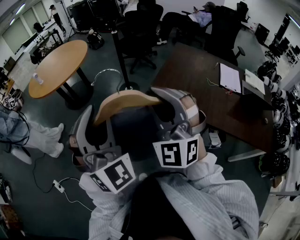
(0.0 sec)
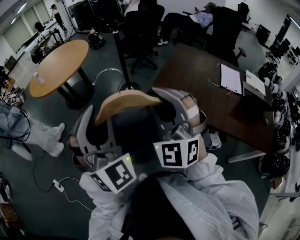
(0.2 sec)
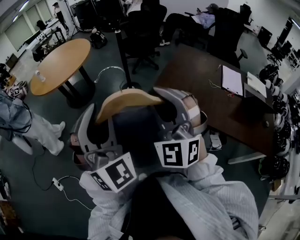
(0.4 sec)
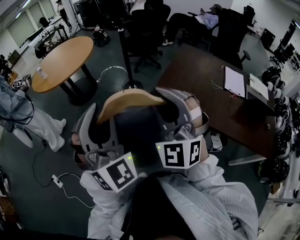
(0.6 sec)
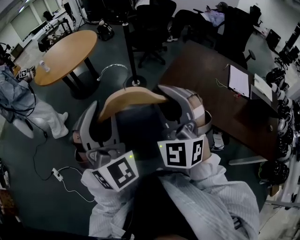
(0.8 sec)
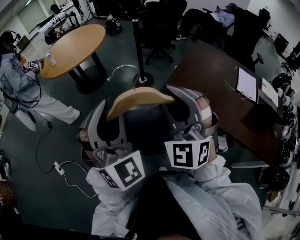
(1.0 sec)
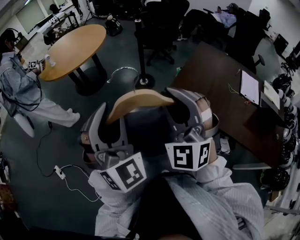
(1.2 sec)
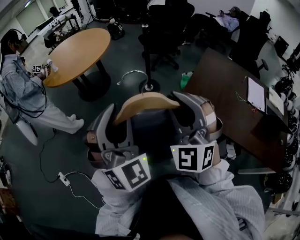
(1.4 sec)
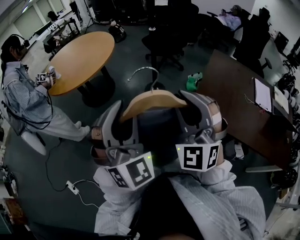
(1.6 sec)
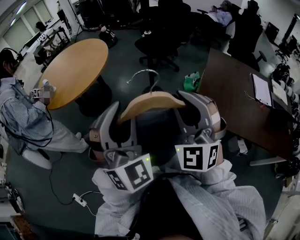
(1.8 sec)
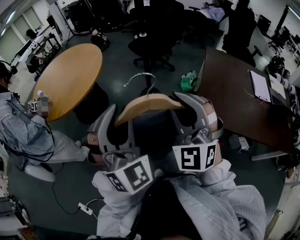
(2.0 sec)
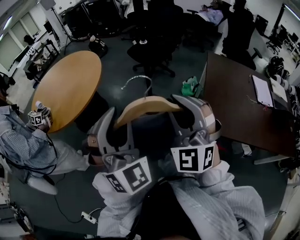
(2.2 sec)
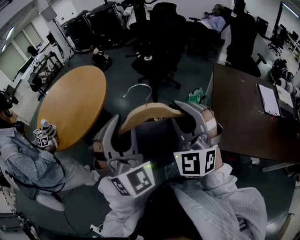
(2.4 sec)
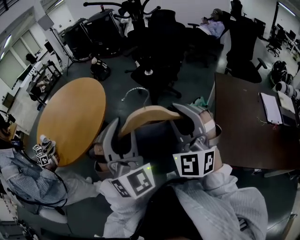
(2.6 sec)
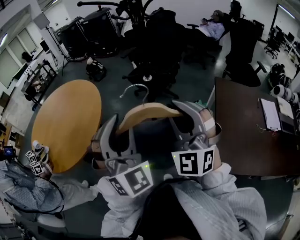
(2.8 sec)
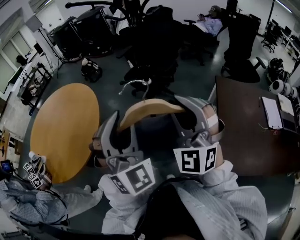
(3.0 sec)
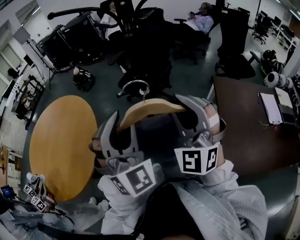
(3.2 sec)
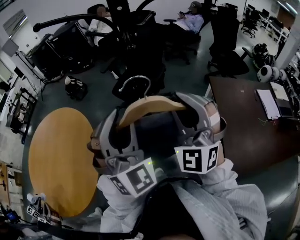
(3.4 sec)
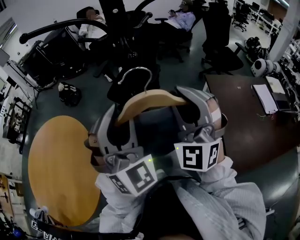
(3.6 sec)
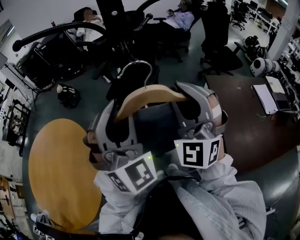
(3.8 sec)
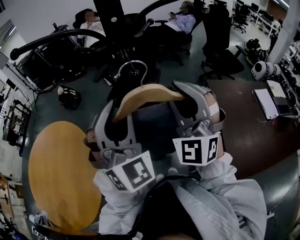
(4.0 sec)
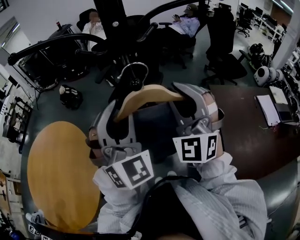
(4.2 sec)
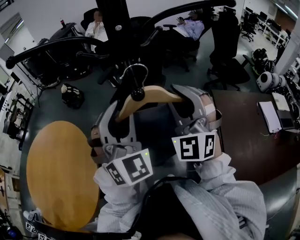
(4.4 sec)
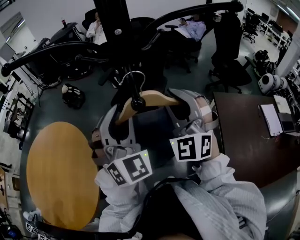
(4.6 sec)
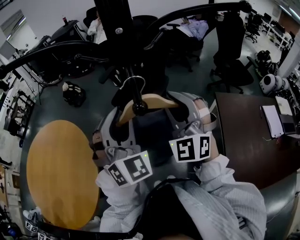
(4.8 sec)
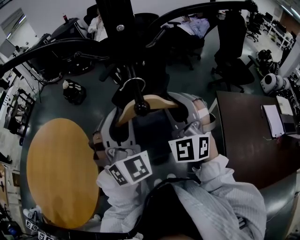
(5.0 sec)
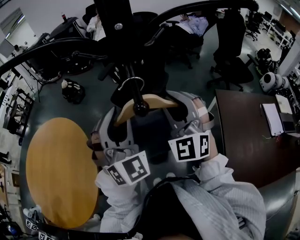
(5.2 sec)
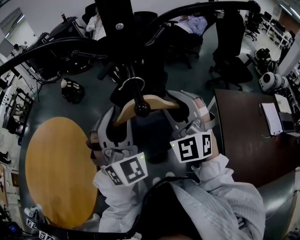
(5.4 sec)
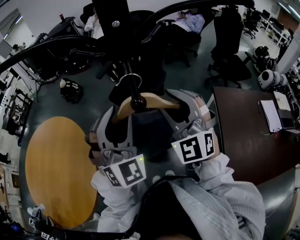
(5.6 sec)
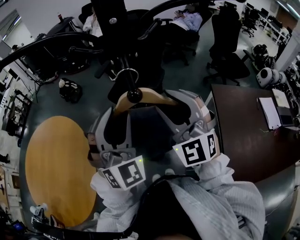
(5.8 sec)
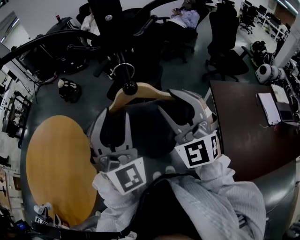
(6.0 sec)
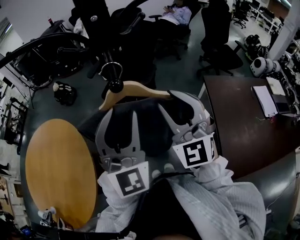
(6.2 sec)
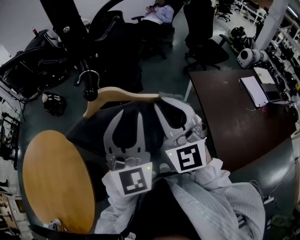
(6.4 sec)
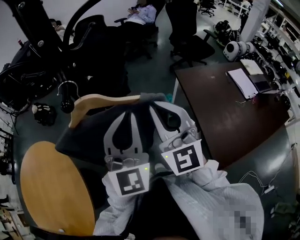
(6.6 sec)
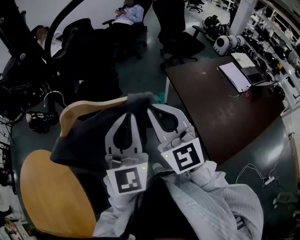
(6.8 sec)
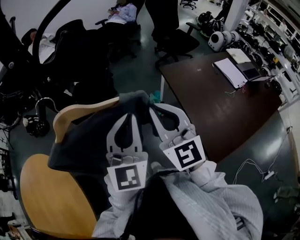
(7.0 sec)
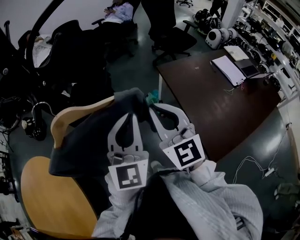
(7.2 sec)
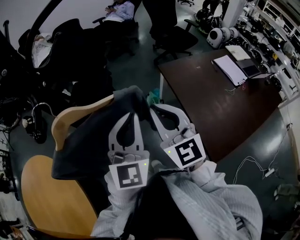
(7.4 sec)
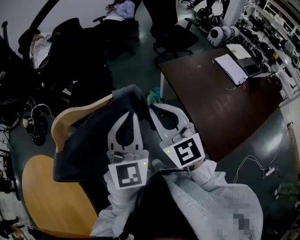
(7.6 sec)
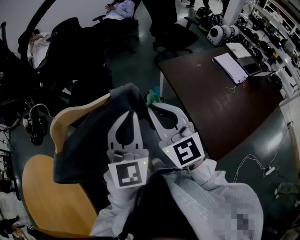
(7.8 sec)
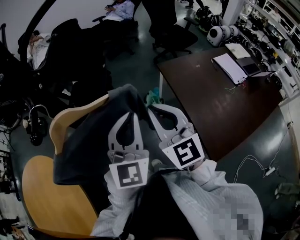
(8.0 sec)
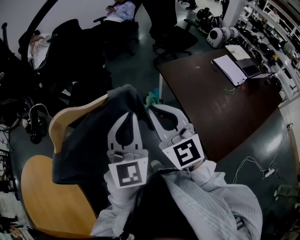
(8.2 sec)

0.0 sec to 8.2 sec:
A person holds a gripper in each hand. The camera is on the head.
0.0 sec to 1.6 sec: The two grippers go approximately 25 cm forward and to the left.
1.6 sec to 3.2 sec: Both grippers are carried forward, some 60 cm. The right gripper swivels approximately 20 degrees.
3.2 sec to 5.0 sec: The grippers both shift forward by roughly 25 cm.
5.0 sec to 6.6 sec: The left gripper is displaced to the right and backward by roughly 15 cm, rotates approximately 40 degrees, and closes its fingers; the right gripper shifts roughly 15 cm backward and to the right, and changes its angle by roughly 30 degrees.
6.6 sec to 8.2 sec: Both grippers move to the right and downward, some 10 cm.

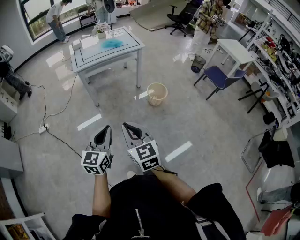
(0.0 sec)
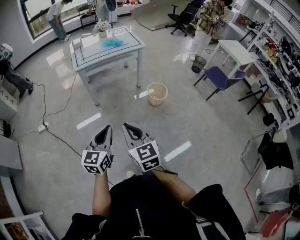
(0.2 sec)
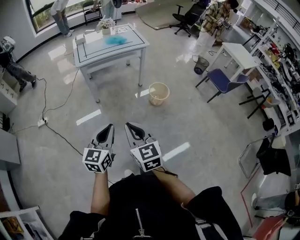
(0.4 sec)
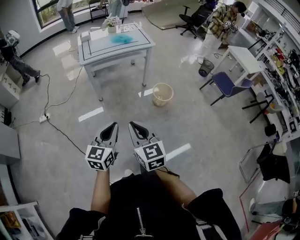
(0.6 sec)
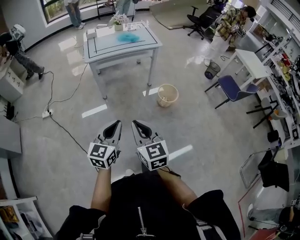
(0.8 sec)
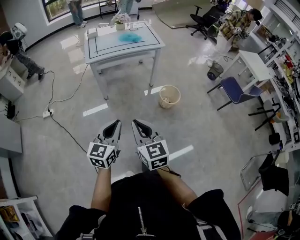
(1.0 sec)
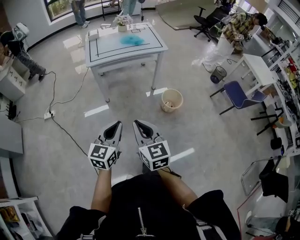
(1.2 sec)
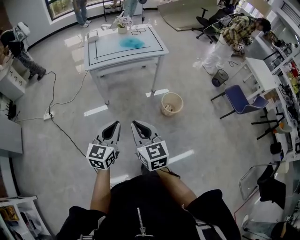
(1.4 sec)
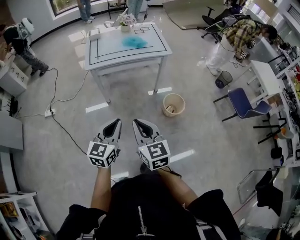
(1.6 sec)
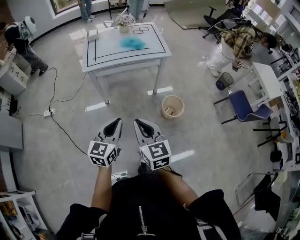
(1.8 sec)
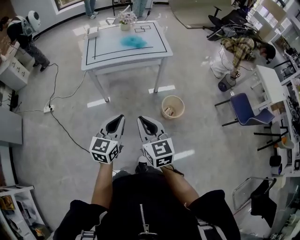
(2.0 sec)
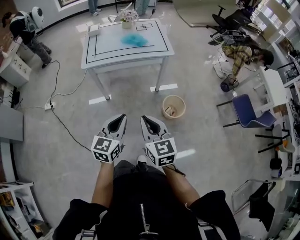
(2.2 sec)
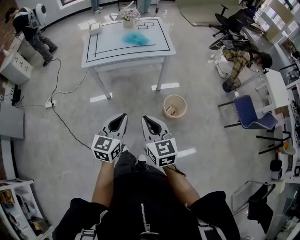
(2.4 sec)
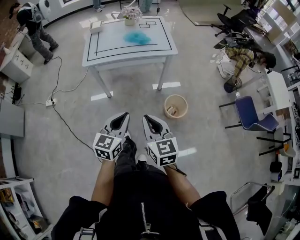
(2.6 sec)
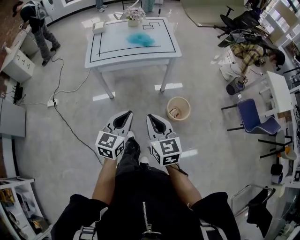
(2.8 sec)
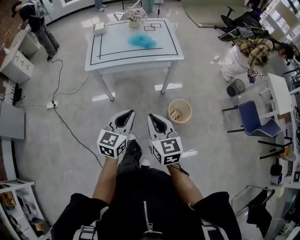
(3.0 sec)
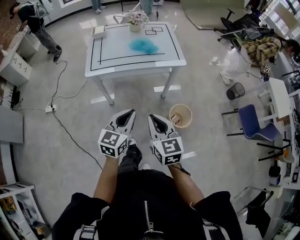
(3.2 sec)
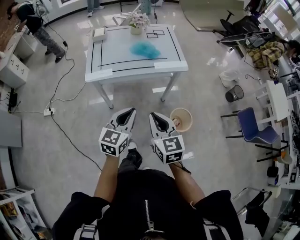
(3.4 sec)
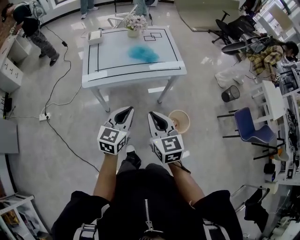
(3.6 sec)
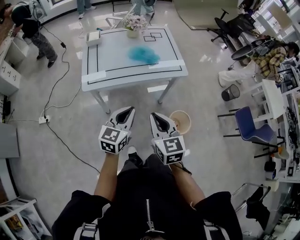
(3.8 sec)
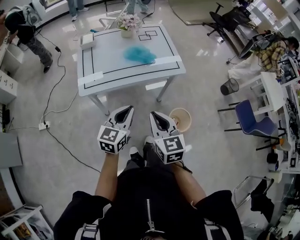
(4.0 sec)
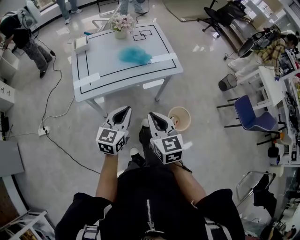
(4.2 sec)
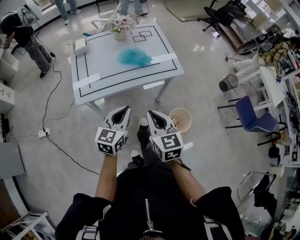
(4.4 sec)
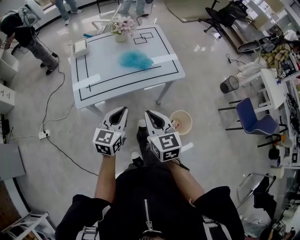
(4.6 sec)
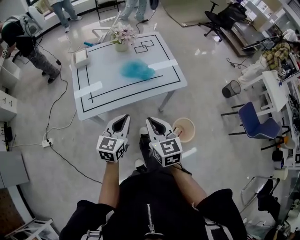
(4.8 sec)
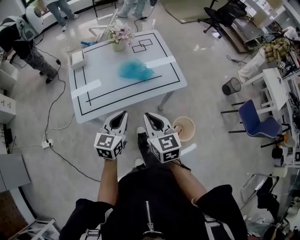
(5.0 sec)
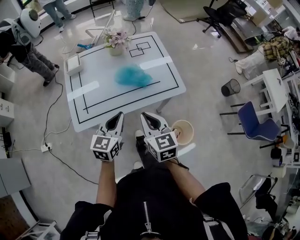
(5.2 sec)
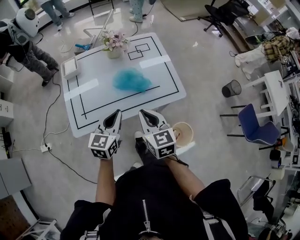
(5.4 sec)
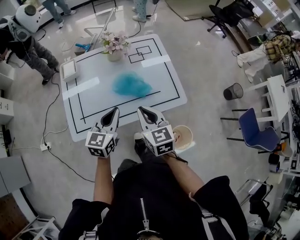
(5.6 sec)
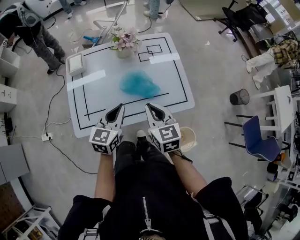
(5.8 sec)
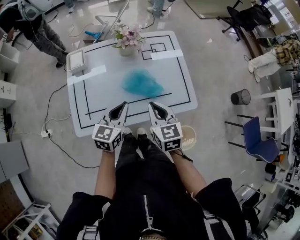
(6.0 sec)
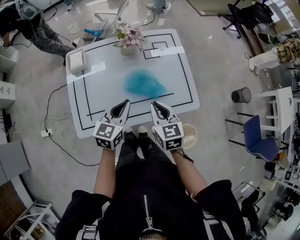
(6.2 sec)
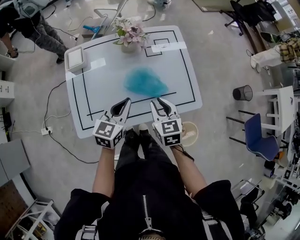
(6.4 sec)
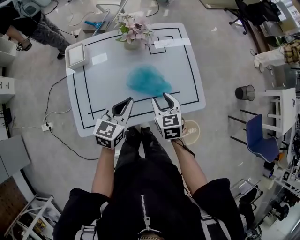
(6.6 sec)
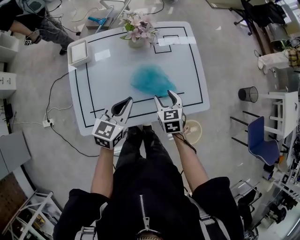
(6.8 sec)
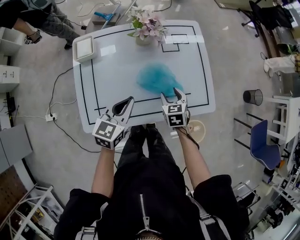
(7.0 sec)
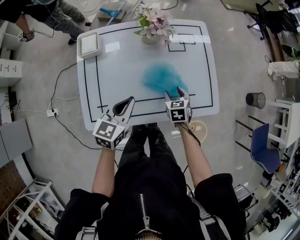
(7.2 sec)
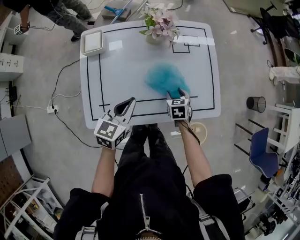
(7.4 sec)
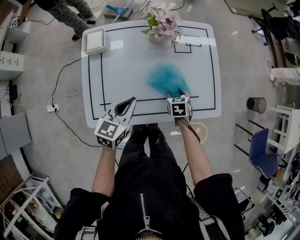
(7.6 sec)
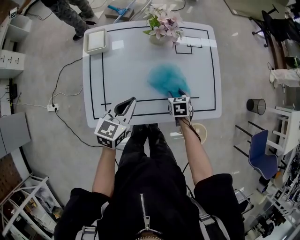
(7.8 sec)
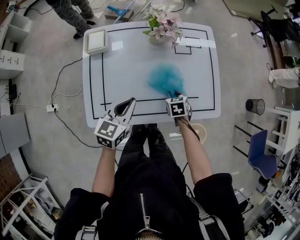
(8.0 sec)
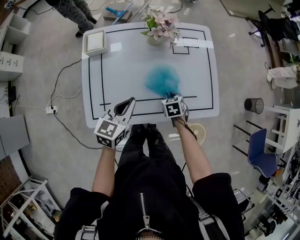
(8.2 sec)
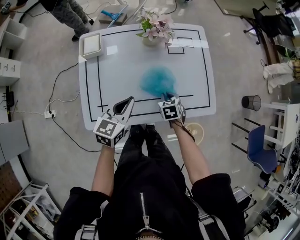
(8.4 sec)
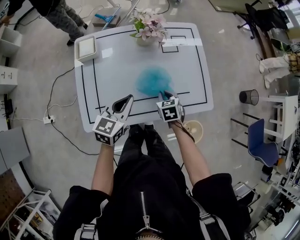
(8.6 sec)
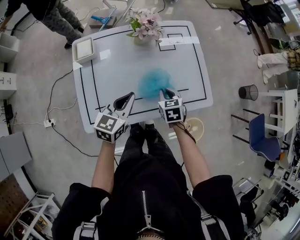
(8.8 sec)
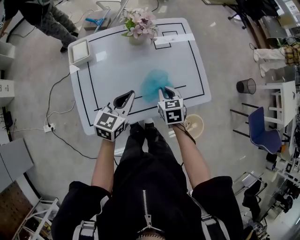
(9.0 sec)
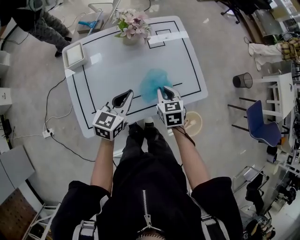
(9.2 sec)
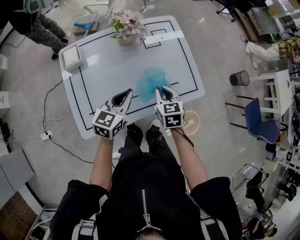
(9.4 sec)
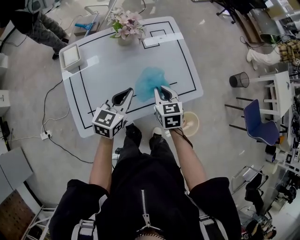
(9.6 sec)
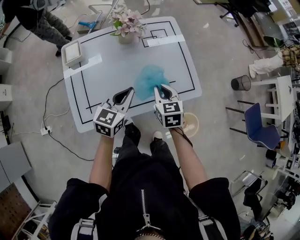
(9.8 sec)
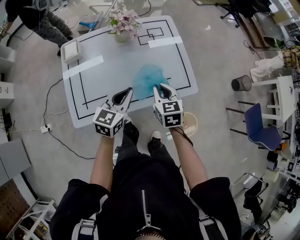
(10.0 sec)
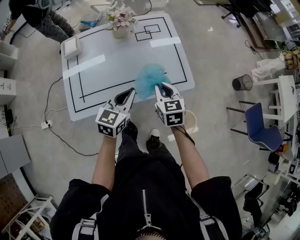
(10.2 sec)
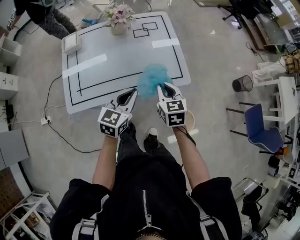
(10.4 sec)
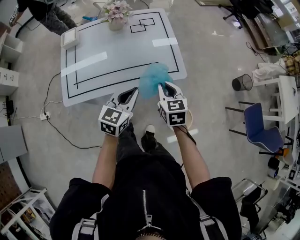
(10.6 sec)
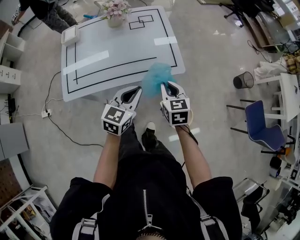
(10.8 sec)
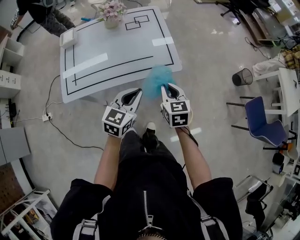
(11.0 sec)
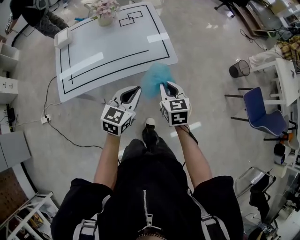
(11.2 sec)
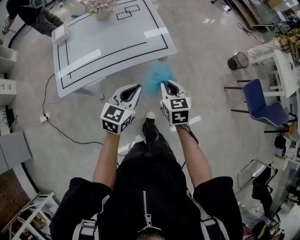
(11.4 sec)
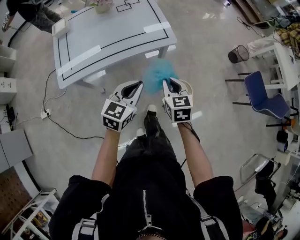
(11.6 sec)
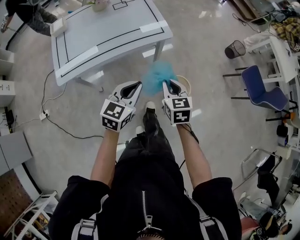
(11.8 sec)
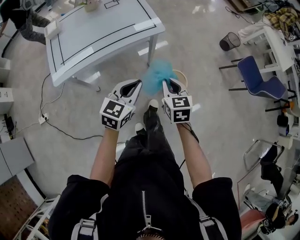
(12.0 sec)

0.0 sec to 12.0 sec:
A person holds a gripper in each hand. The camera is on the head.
0.0 sec to 1.6 sec: The two grippers go roughly 25 cm forward.
1.6 sec to 3.0 sec: Both grippers move forward and to the right, some 20 cm.
3.0 sec to 4.4 sec: The right gripper goes approximately 20 cm forward. The left gripper is displaced forward and to the left by roughly 25 cm.
4.4 sec to 6.0 sec: Both grippers travel together forward, approximately 30 cm.
6.0 sec to 7.6 sec: The left gripper heads to the left and downward, covering approximately 10 cm. The right gripper shifts some 25 cm downward and forward, tilts its fingers about 30 degrees downward, and opens its fingers.
7.6 sec to 9.0 sec: The right gripper heads upward, covering roughly 10 cm, and closes its fingers.
9.0 sec to 10.4 sec: The right gripper goes roughly 20 cm to the right, upward and backward; the left gripper goes roughly 20 cm to the right and backward.
10.4 sec to 12.0 sec: The grippers both shift backward and to the right by roughly 30 cm.

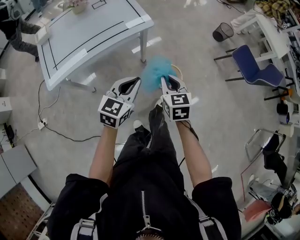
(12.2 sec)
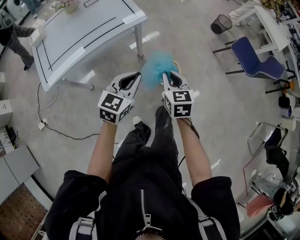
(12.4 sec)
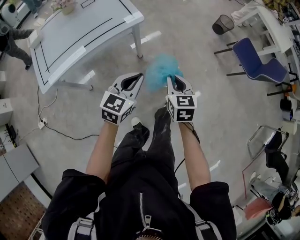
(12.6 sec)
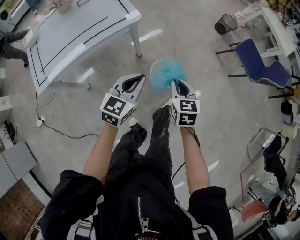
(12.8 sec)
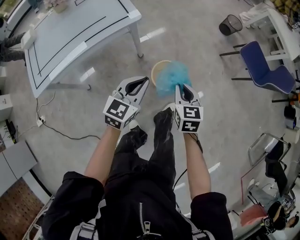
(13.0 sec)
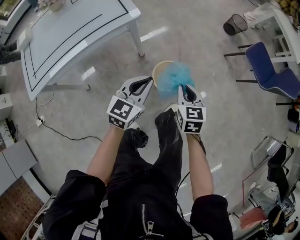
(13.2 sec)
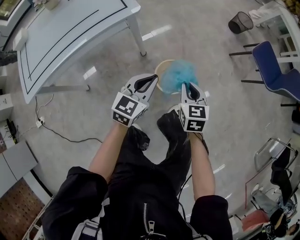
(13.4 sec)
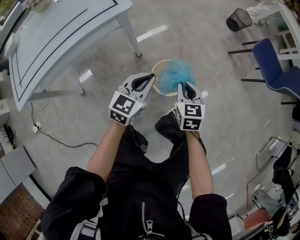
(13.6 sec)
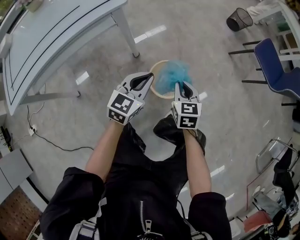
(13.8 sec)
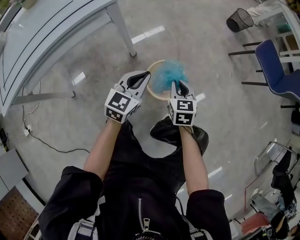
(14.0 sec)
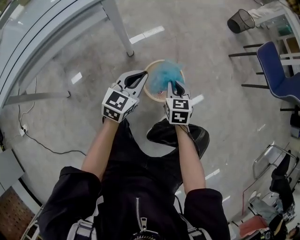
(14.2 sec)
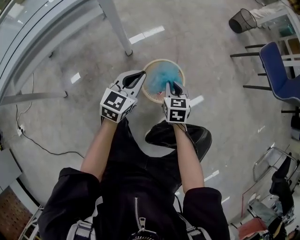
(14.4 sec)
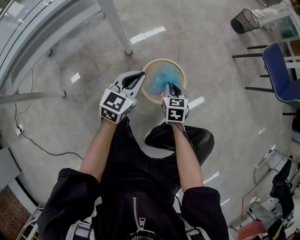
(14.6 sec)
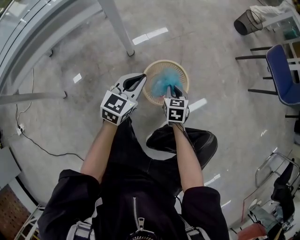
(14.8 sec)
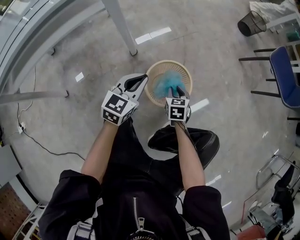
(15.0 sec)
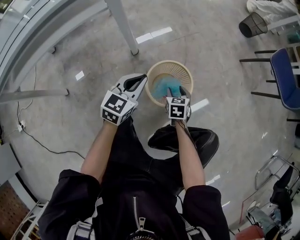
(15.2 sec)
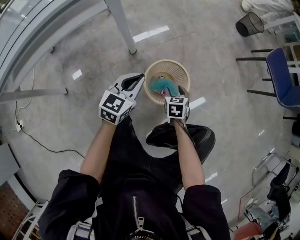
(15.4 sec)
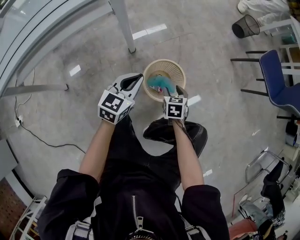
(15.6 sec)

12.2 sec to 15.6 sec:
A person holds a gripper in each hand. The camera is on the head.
12.2 sec to 13.8 sec: The left gripper is displaced downward, forward and to the right by about 35 cm, while the right gripper is displaced downward, to the right and forward by about 40 cm.
13.8 sec to 15.6 sec: The right gripper heads downward, covering approximately 20 cm, and opens, while the left gripper travels downward by some 10 cm.
